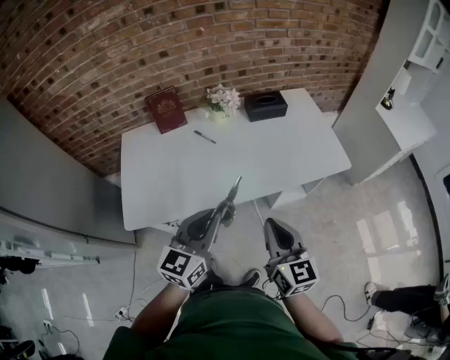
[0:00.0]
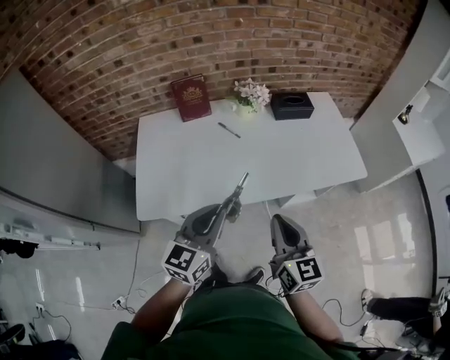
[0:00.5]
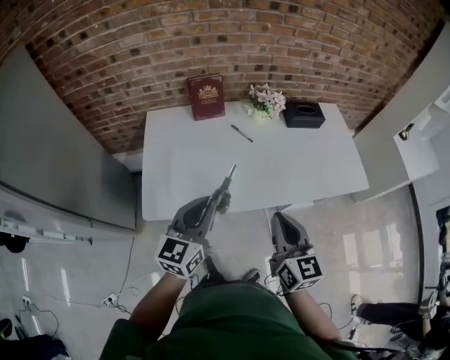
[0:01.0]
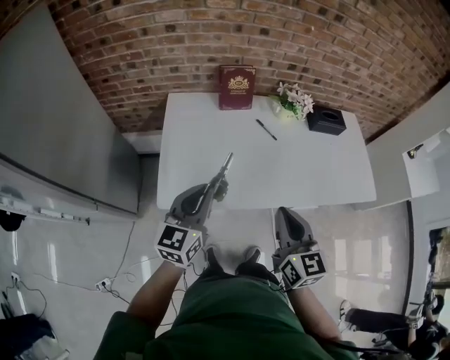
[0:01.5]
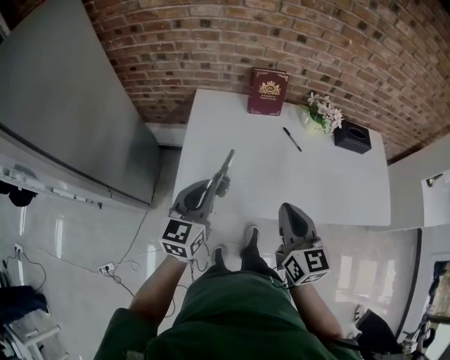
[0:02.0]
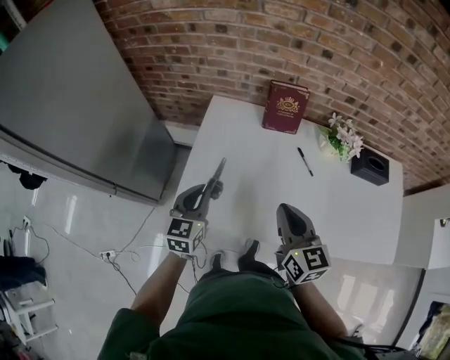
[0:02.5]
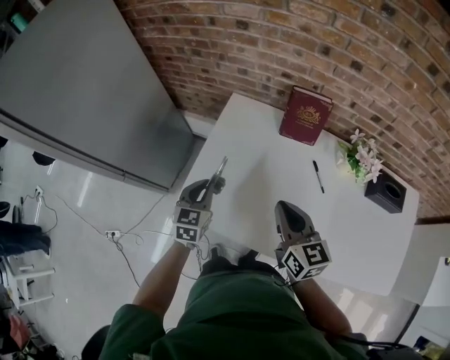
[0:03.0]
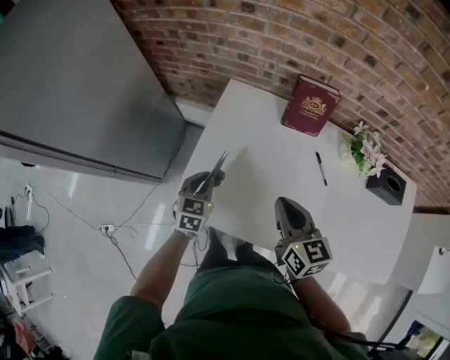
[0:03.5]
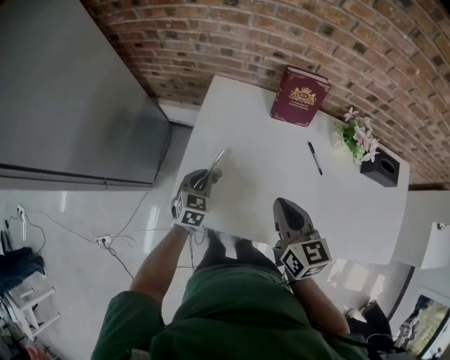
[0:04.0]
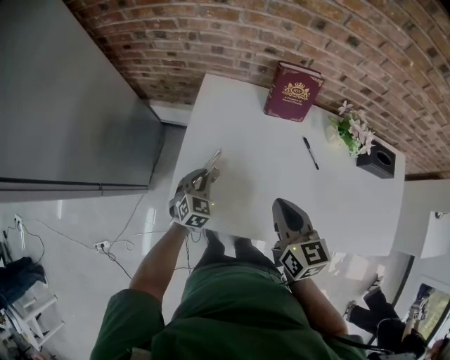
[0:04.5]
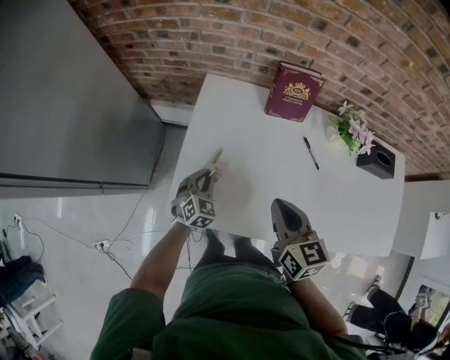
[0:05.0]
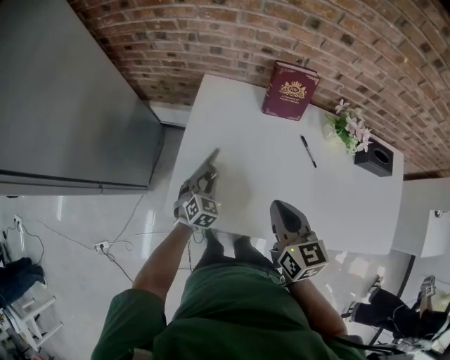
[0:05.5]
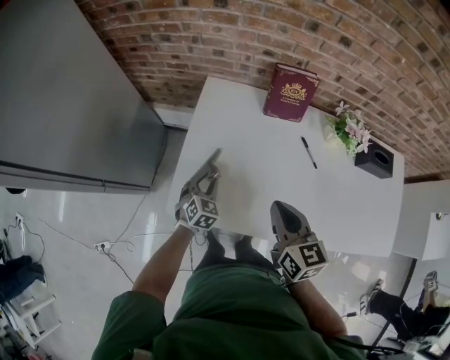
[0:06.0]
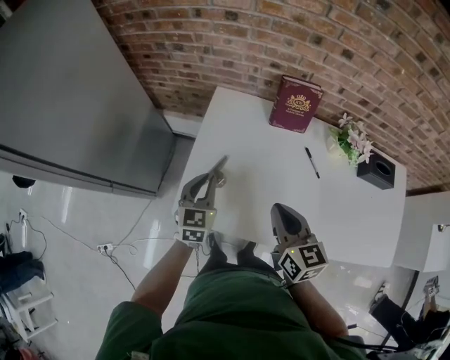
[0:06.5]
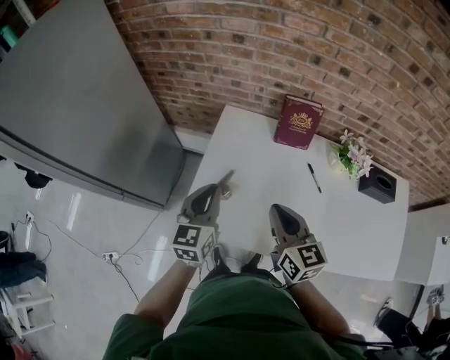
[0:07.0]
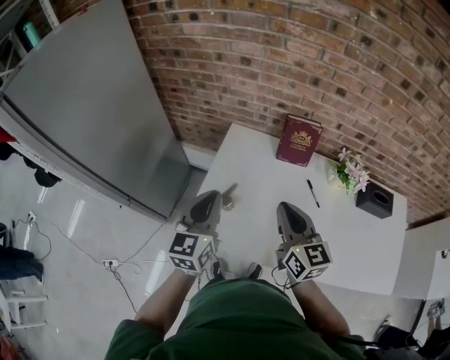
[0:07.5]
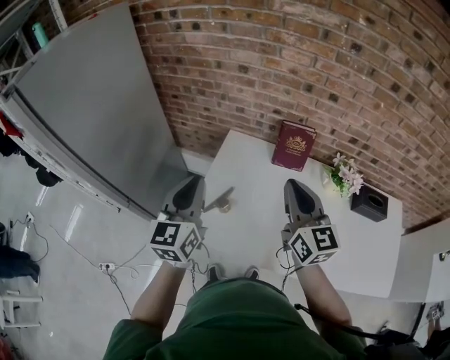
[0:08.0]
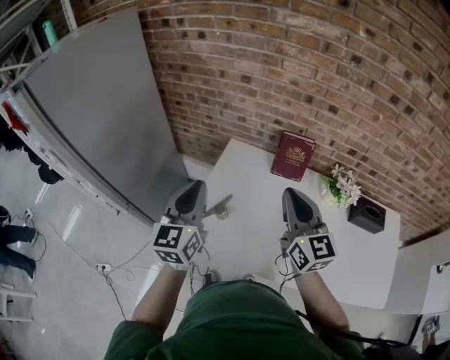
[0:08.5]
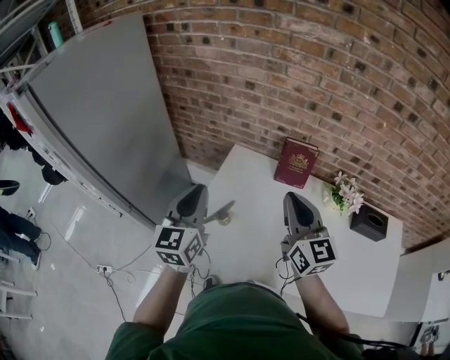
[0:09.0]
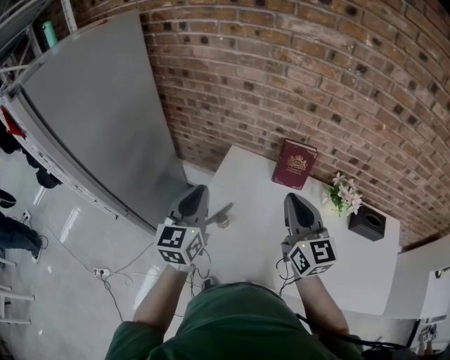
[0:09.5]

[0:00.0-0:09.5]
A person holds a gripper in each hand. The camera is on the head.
0:00.0 to 0:02.0: The left gripper moves to the left, some 35 cm, and changes its angle by roughly 20 degrees, while the right gripper is displaced to the left and forward by about 30 cm.
0:02.0 to 0:04.0: The right gripper goes roughly 20 cm forward and downward. The left gripper shifts roughly 30 cm downward and forward, and angles its fingers downward, by approximately 30 degrees.
0:04.0 to 0:05.5: The left gripper changes place by some 5 cm.
0:05.5 to 0:07.5: The left gripper moves upward, some 35 cm, and tilts its fingers roughly 40 degrees upward; the right gripper heads upward, covering roughly 10 cm.
0:07.5 to 0:09.5: The right gripper travels upward by some 10 cm, while the left gripper moves some 5 cm.

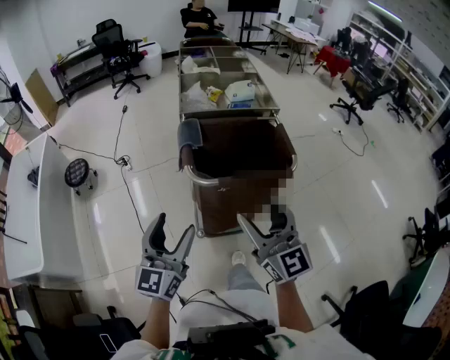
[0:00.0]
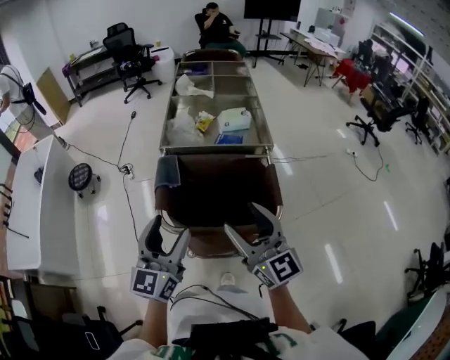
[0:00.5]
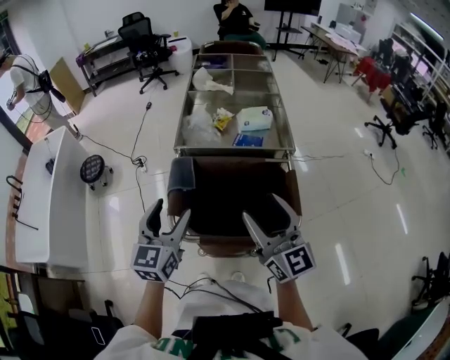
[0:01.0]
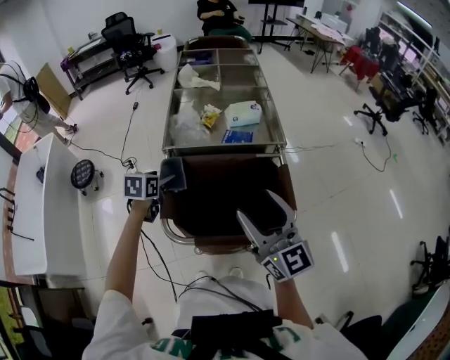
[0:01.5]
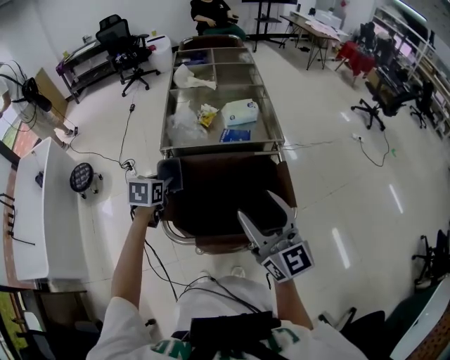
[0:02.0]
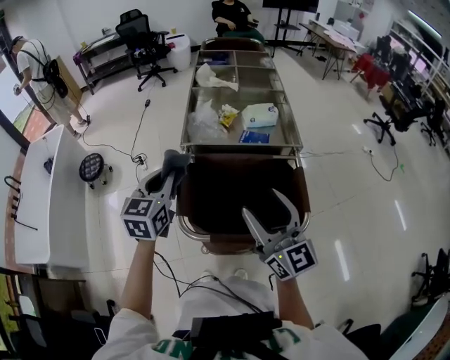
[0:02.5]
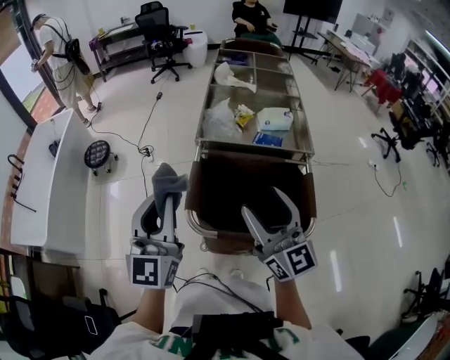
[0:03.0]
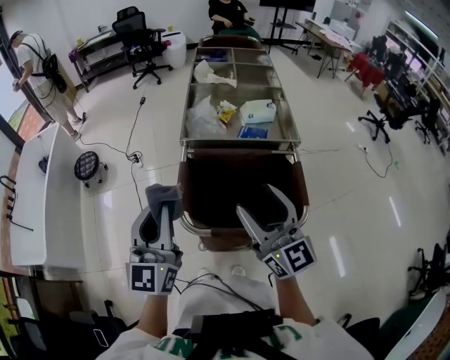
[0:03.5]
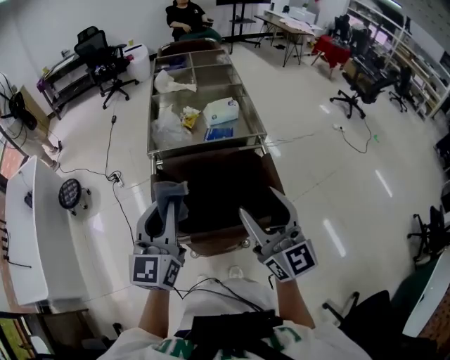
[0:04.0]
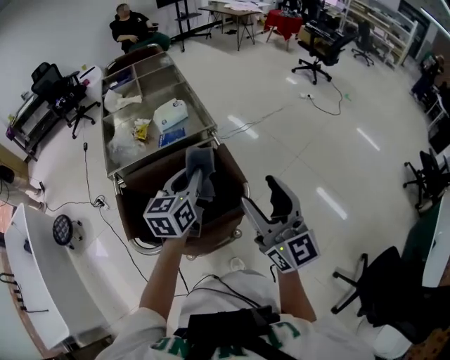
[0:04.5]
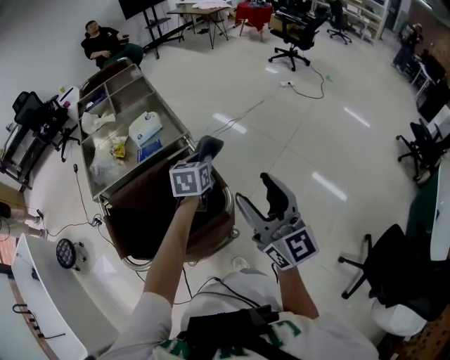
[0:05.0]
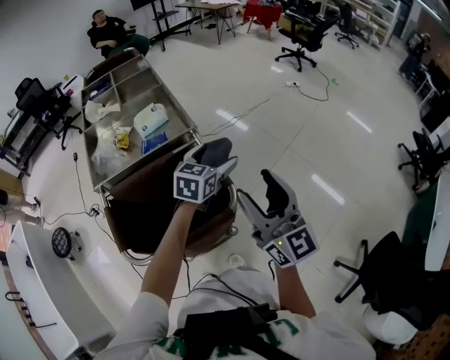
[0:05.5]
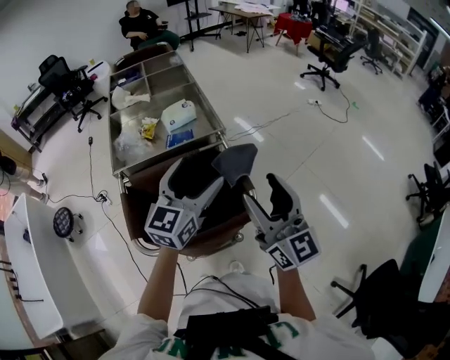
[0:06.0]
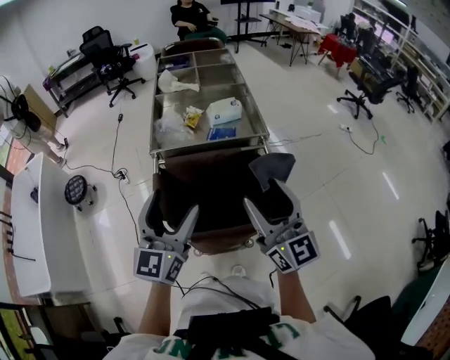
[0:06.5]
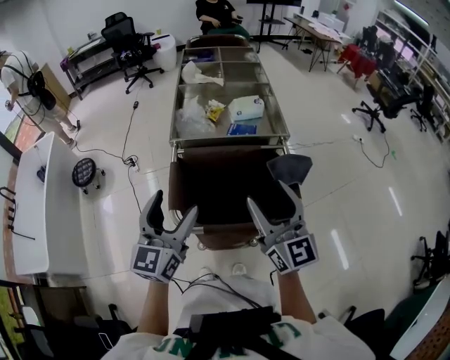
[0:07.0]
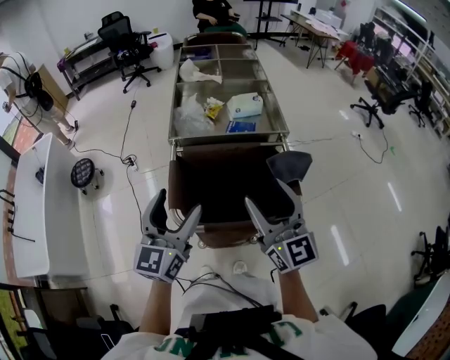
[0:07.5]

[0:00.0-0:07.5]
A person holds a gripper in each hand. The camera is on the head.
0:00.0 to 0:02.0: The left gripper travels forward by roughly 35 cm, and points its fingers some 50 degrees further downward. Meanwhile the right gripper travels forward and to the right by approximately 25 cm.
0:02.0 to 0:04.0: The left gripper travels upward and backward by about 25 cm, and tips its fingers upward by approximately 50 degrees. The right gripper reaches approximately 5 cm to the left, then returns.
0:04.0 to 0:05.5: The left gripper changes place by approximately 40 cm, swivels approximately 50 degrees, and opens, while the right gripper moves roughly 15 cm.
0:05.5 to 0:07.5: The left gripper ends up roughly 40 cm from where it was, and changes its angle by some 50 degrees. The right gripper shifts by about 20 cm, and changes its angle by approximately 20 degrees.

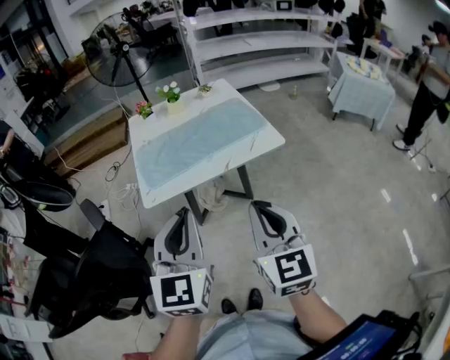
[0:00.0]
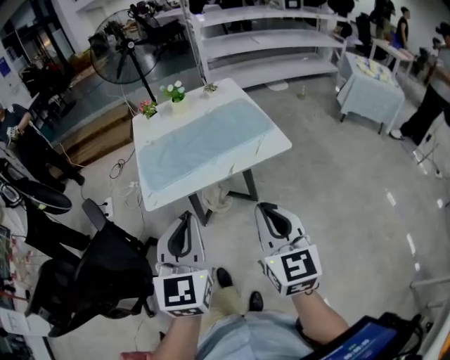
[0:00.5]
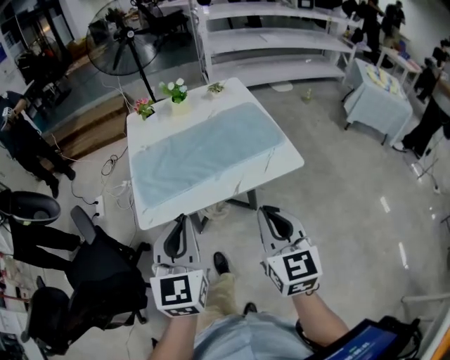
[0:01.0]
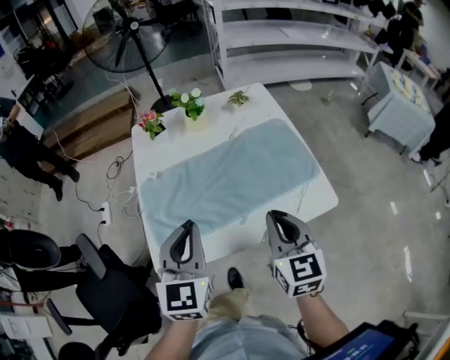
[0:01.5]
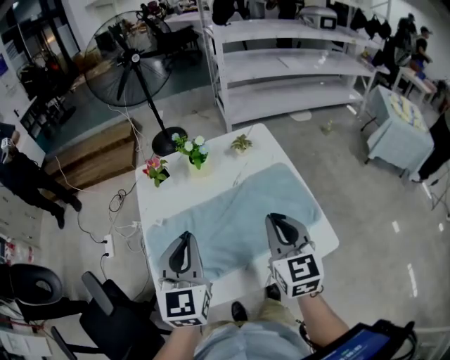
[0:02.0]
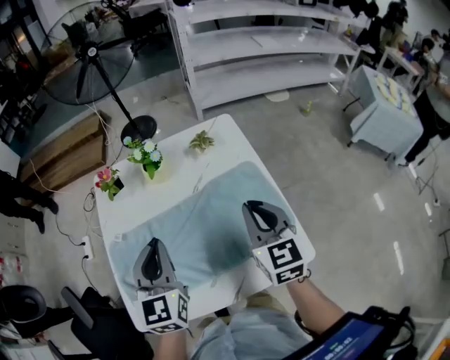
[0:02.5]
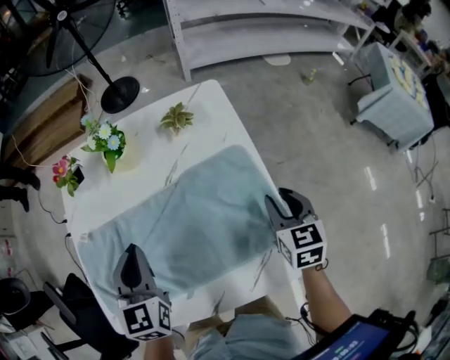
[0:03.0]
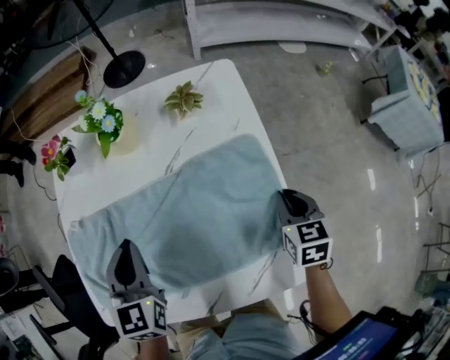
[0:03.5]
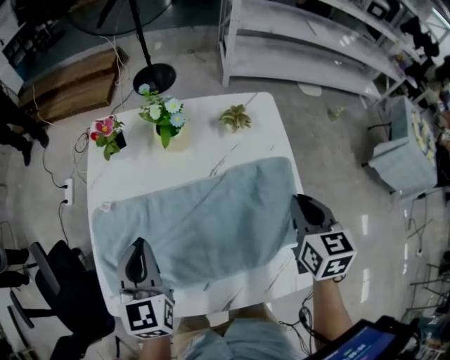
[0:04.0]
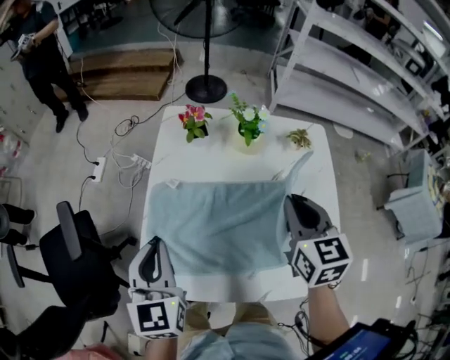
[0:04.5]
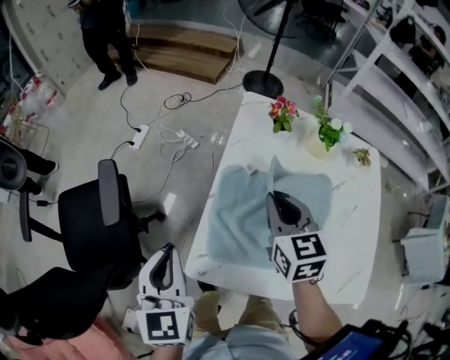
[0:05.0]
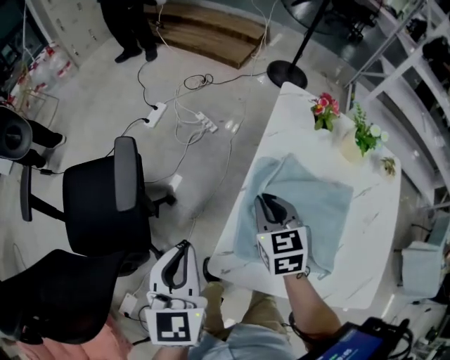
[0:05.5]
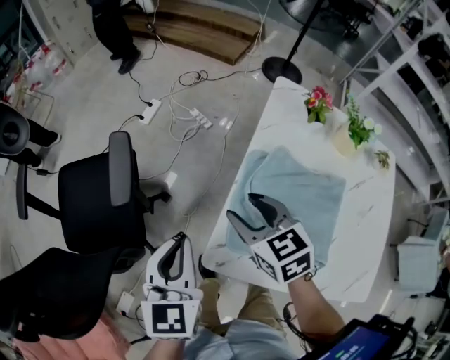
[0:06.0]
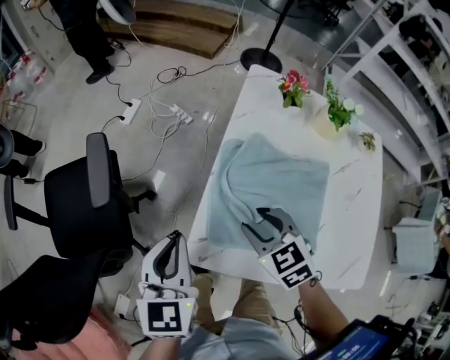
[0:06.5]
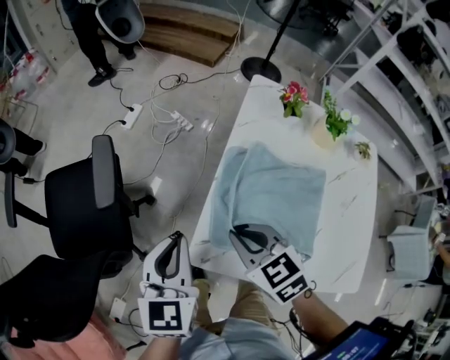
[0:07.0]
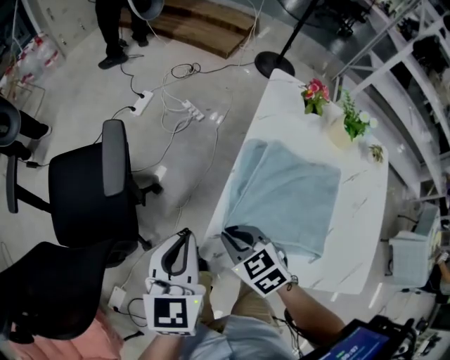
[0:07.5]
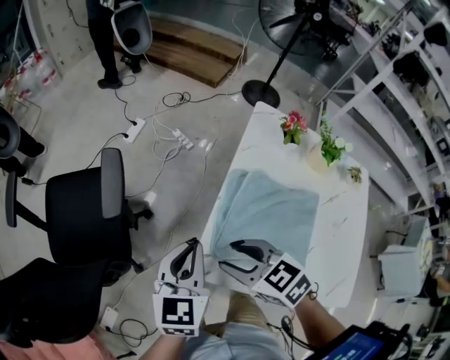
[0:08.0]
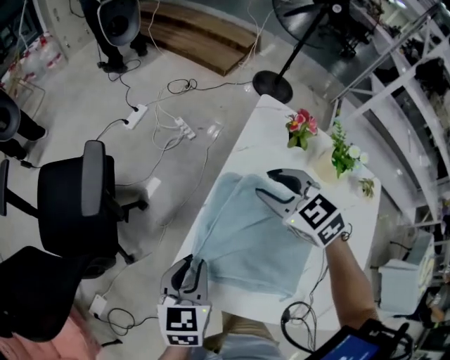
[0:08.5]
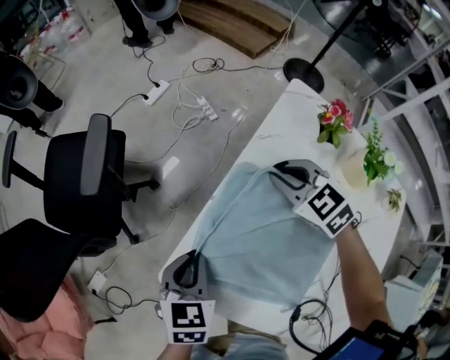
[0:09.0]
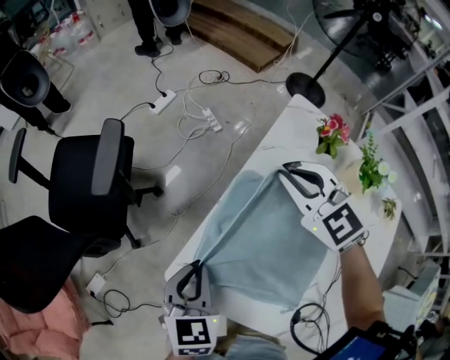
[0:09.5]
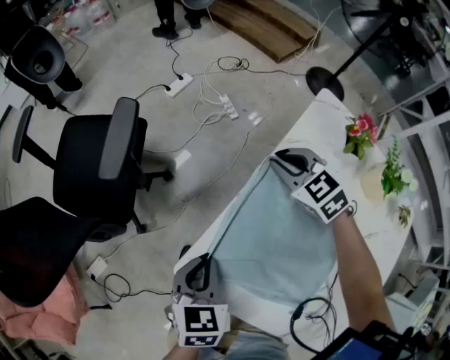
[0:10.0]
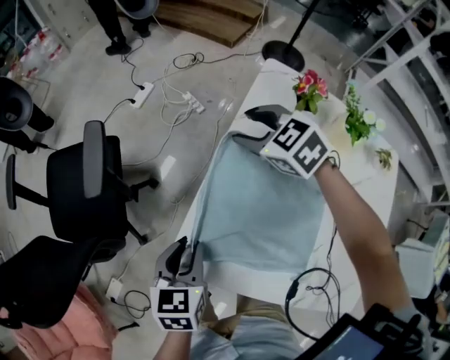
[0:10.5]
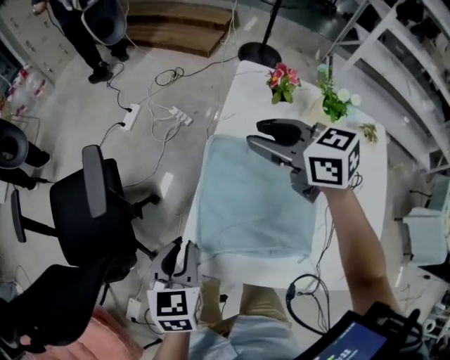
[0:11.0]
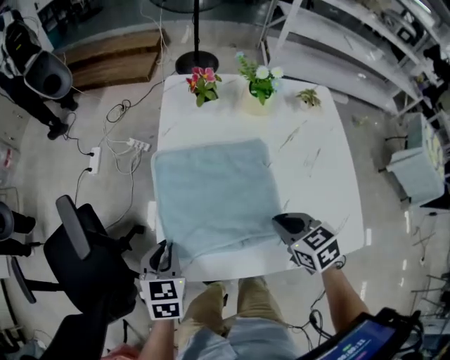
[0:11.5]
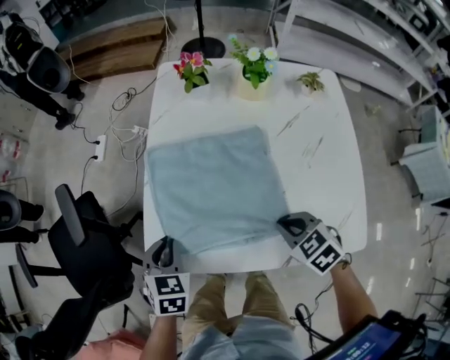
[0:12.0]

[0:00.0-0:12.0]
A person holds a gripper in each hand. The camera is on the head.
0:00.0 to 0:02.0: Both grippers are carried forward, roughly 40 cm.
0:02.0 to 0:04.0: The left gripper travels downward and forward by some 15 cm, and changes its angle by approximately 20 degrees, while the right gripper heads to the right, forward and downward, covering approximately 25 cm, changes its angle by approximately 20 degrees, and opens and closes again.
0:04.0 to 0:06.0: The right gripper travels downward and back again, some 10 cm each way, swivels about 50 degrees, and opens. The left gripper changes place by about 35 cm, and turns by approximately 20 degrees.
0:06.0 to 0:08.0: The right gripper heads backward, covering some 10 cm, goes to the right and returns, roughly 5 cm each way, rotates some 20 degrees, and closes, then reopens.
0:08.0 to 0:10.0: The right gripper shifts about 30 cm forward, to the right and downward, turns by some 30 degrees, and closes up; the left gripper goes up and down, some 15 cm each way, reversing 2 times, and turns by roughly 30 degrees.
0:10.0 to 0:12.0: The right gripper goes upward and returns, approximately 15 cm each way, swivels about 50 degrees, and opens, then closes again, while the left gripper changes its angle by approximately 40 degrees.
